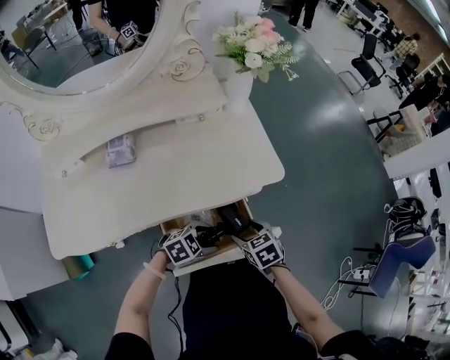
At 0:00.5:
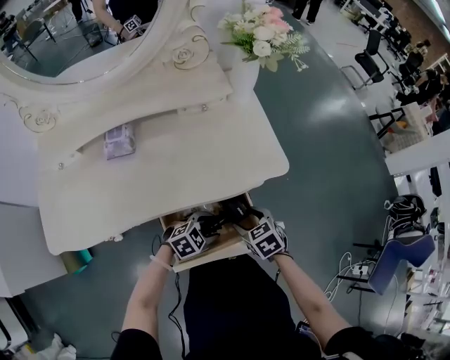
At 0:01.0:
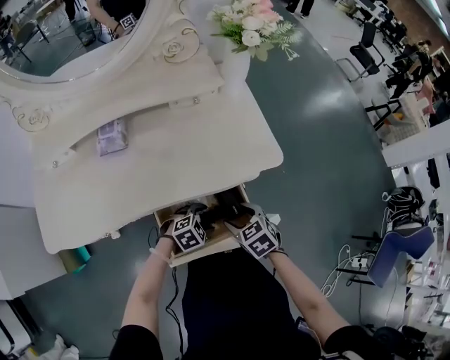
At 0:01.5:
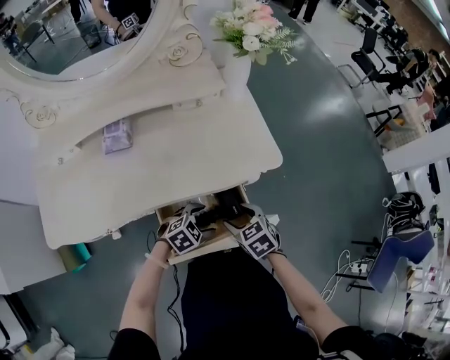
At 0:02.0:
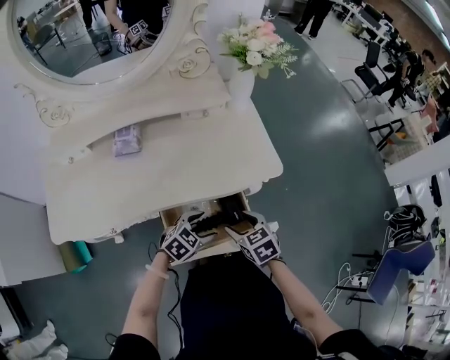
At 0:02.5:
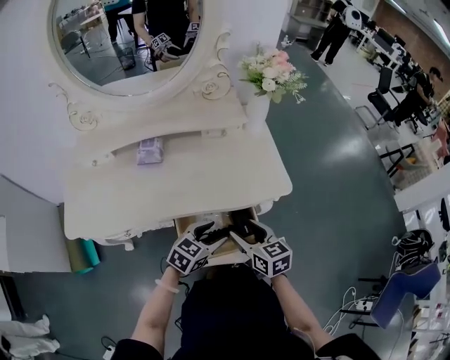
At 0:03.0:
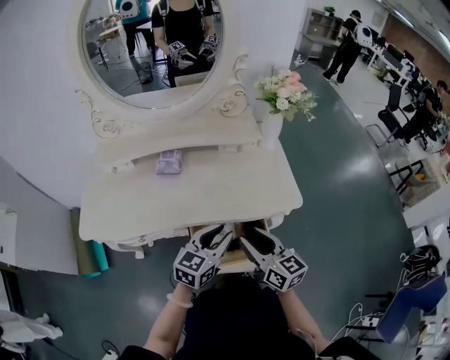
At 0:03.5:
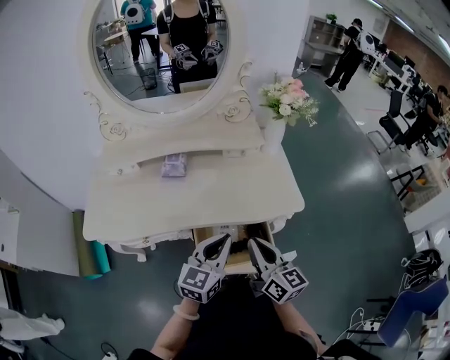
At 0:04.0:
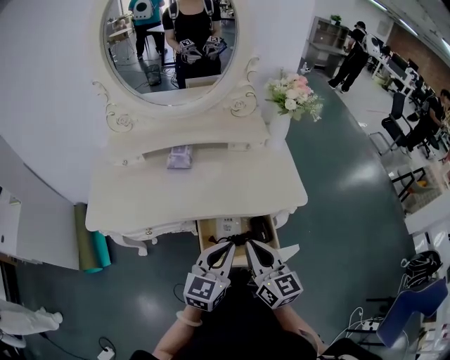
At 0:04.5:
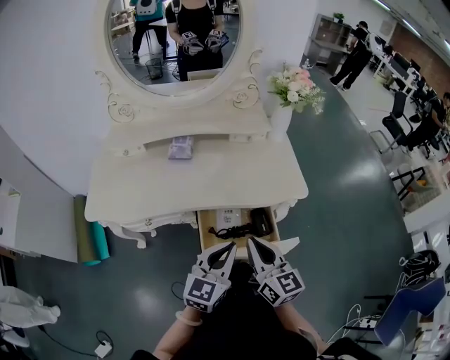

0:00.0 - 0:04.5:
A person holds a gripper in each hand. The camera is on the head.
0:00.0 - 0:02.0: The left gripper moves some 5 cm downward and comes back, and turns by some 20 degrees.
0:02.0 - 0:04.5: The right gripper moves upward and backward, about 20 cm, tilts its fingers some 40 degrees upward, and closes up. Meanwhile the left gripper is displaced upward by about 20 cm, tips its fingers upward by roughly 30 degrees, and closes up.

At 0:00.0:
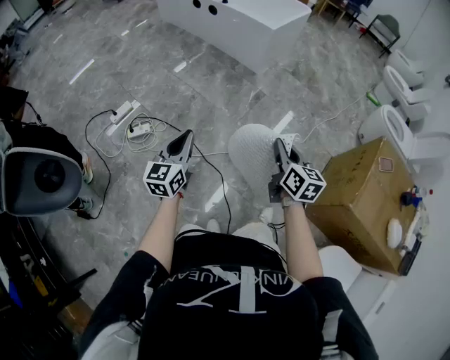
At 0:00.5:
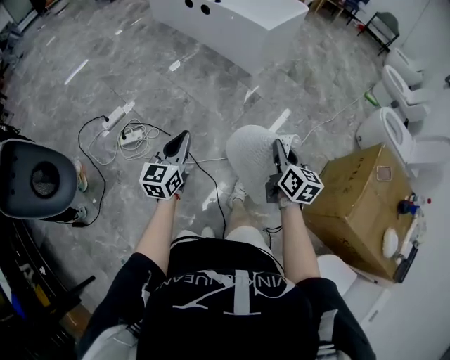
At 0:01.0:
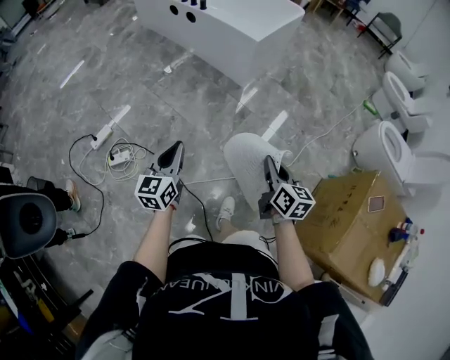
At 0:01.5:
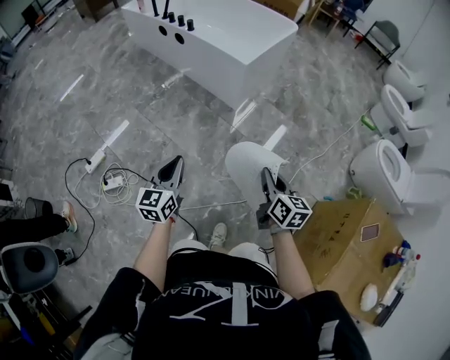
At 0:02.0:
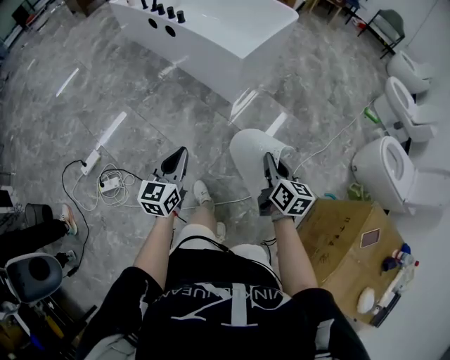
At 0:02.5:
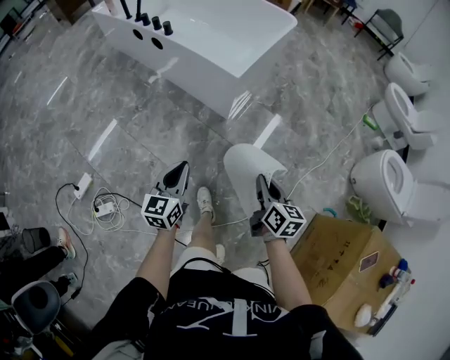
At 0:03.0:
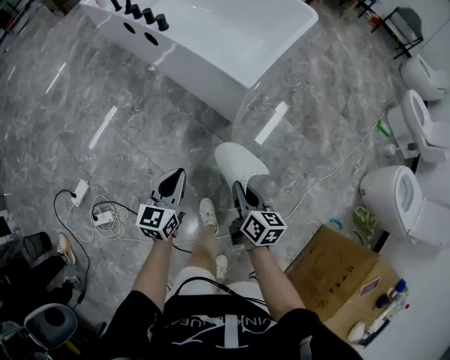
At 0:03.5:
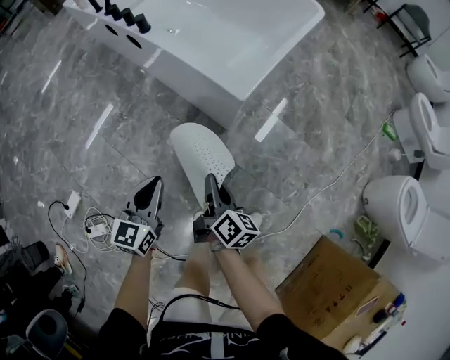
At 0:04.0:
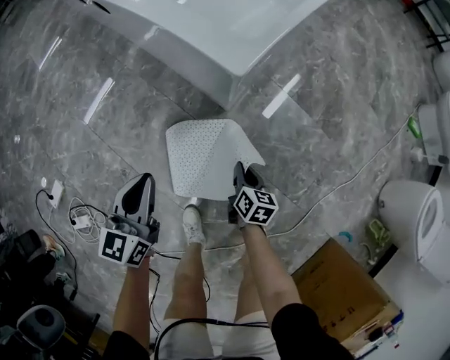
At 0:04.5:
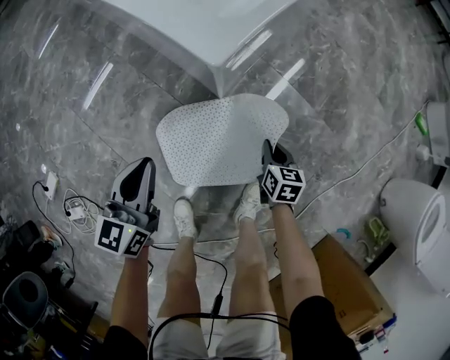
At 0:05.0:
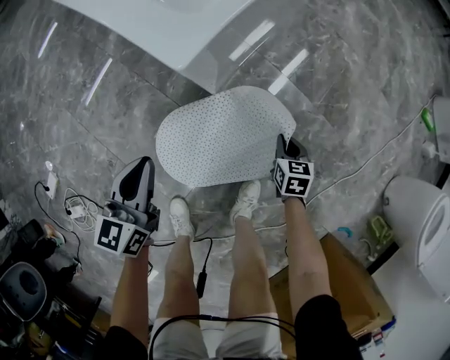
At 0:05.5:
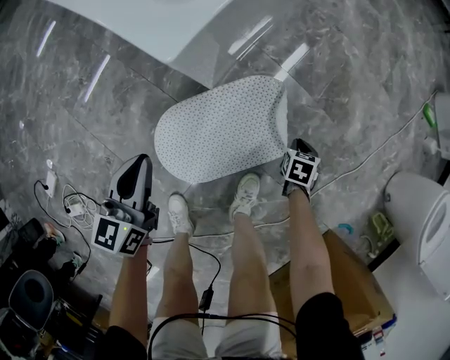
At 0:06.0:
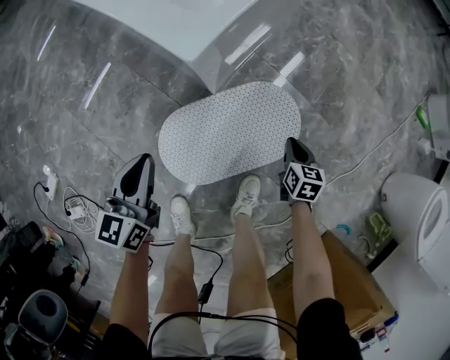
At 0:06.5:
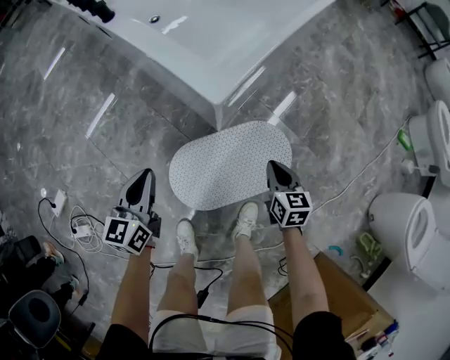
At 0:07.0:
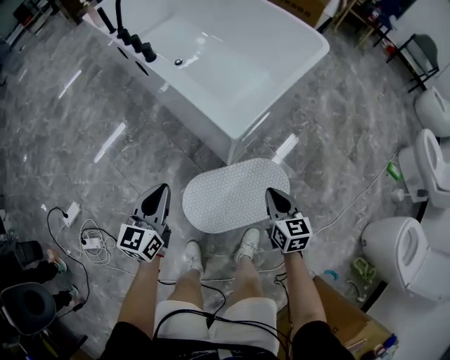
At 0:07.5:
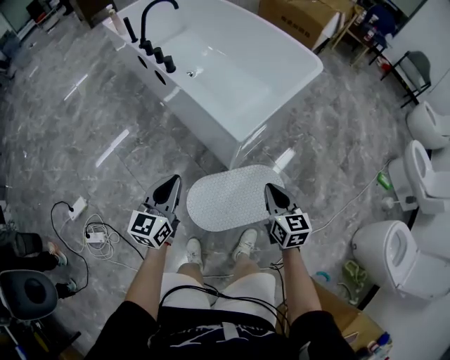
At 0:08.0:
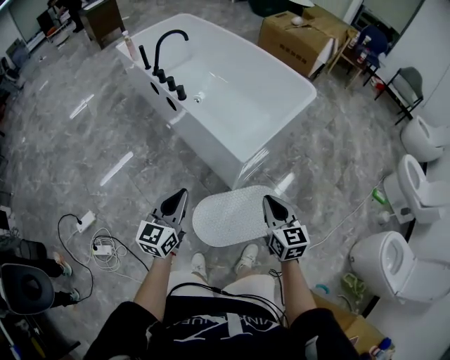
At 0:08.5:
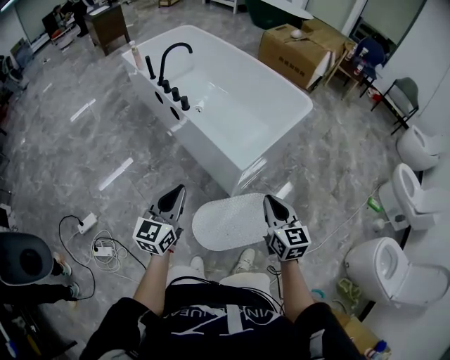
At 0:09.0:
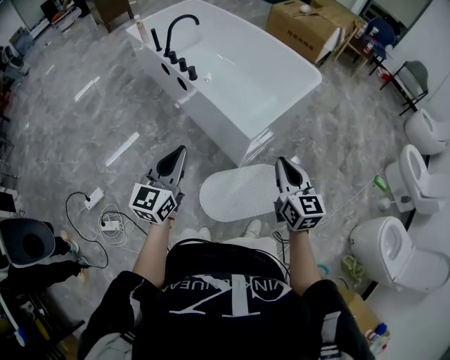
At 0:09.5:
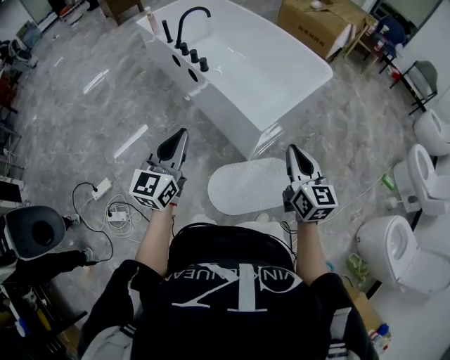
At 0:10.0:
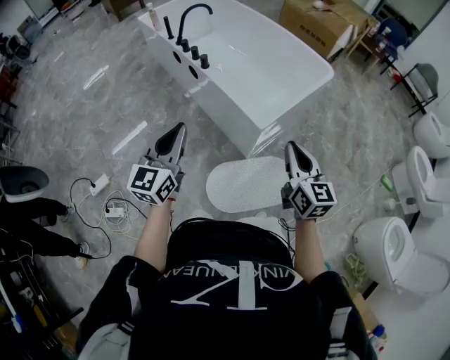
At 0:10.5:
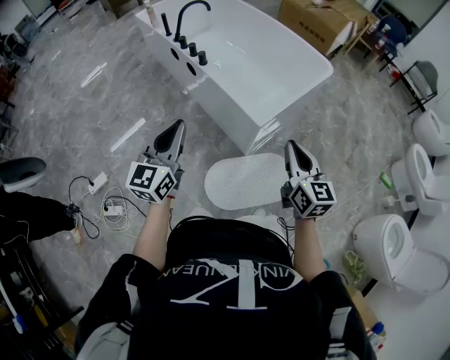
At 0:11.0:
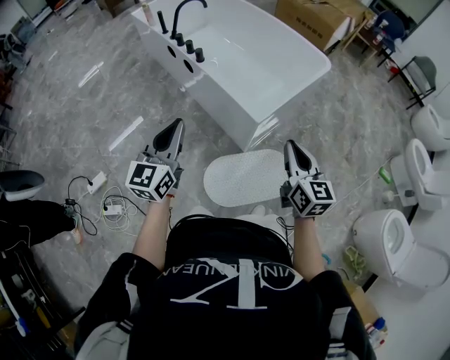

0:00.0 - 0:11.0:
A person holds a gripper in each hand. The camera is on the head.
0:00.0 - 0:02.0: Both grippers are carried forward, some 50 cm.
0:02.0 - 0:03.5: The right gripper travels forward, downward and to the left by roughly 40 cm, and turns by roughly 30 degrees. The left gripper is displaced forward and downward by approximately 40 cm.
0:03.5 - 0:05.5: The right gripper travels downward and to the right by about 60 cm, and tilts its fingers roughly 50 degrees downward. Meanwhile the left gripper travels downward, to the right and forward by about 30 cm.
0:05.5 - 0:07.5: The left gripper shifts some 30 cm upward. Meanwhile the right gripper moves upward and to the left, approximately 60 cm, and tips its fingers upward by about 40 degrees.
0:07.5 - 0:09.0: The grippers both shift upward by some 20 cm.
0:09.0 - 0:11.0: The grippers stay close to where they were, moving slightly.

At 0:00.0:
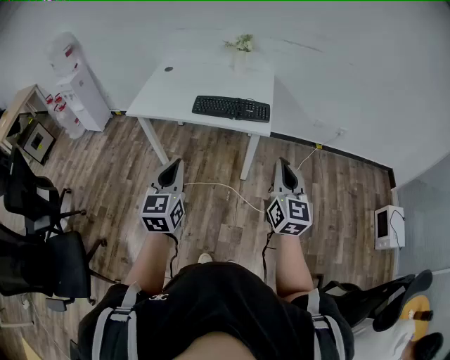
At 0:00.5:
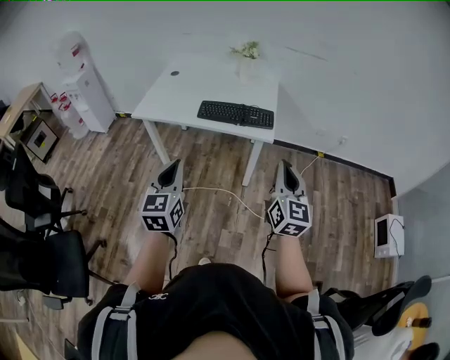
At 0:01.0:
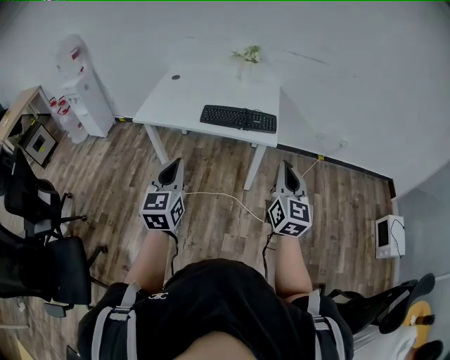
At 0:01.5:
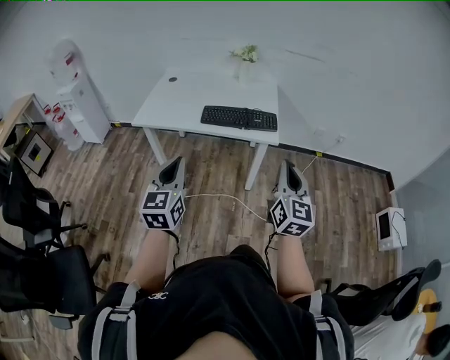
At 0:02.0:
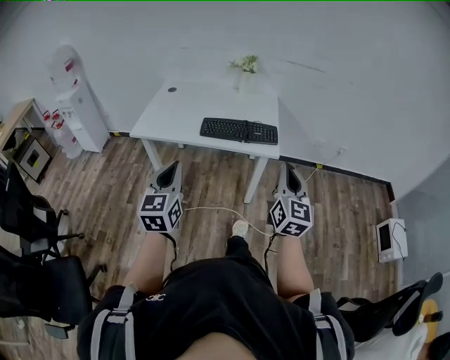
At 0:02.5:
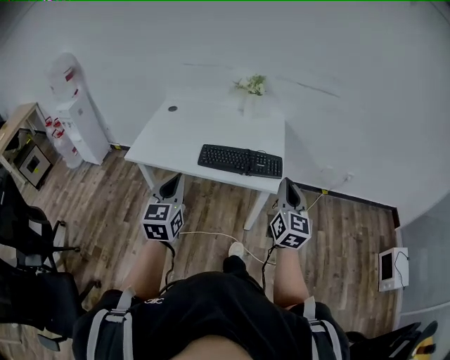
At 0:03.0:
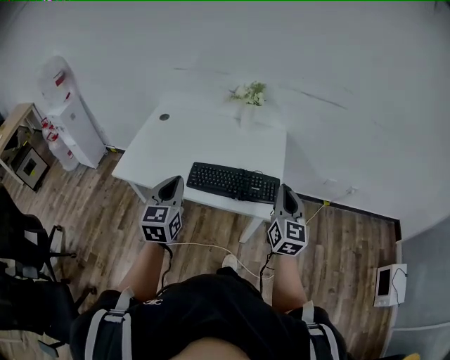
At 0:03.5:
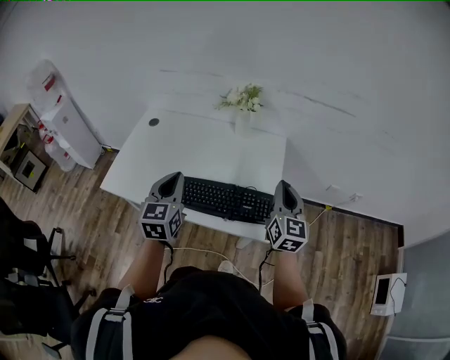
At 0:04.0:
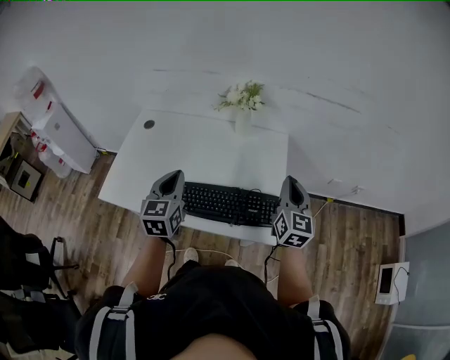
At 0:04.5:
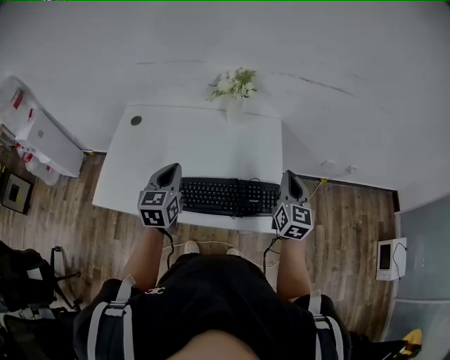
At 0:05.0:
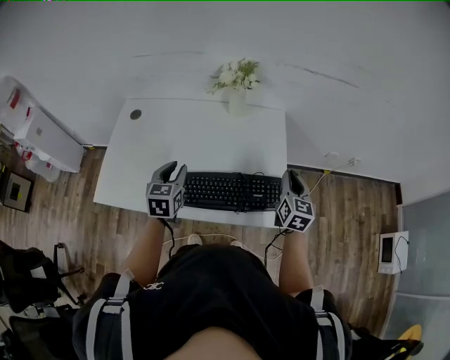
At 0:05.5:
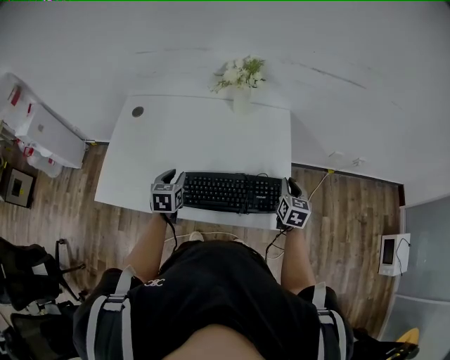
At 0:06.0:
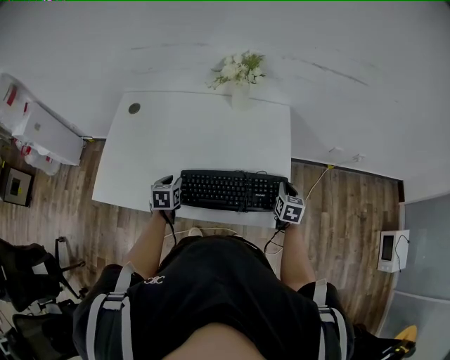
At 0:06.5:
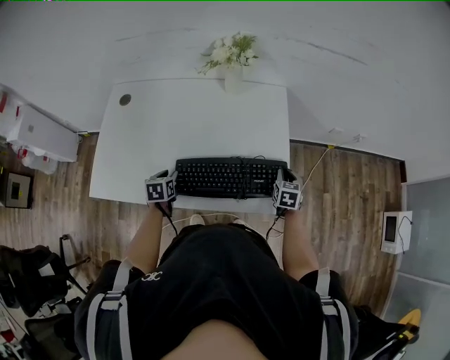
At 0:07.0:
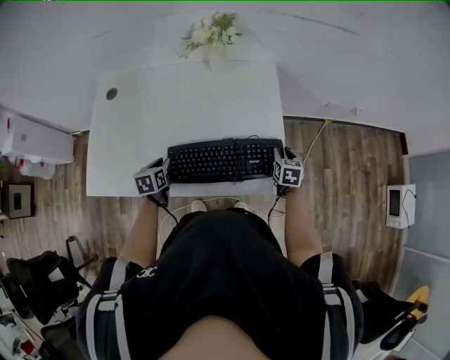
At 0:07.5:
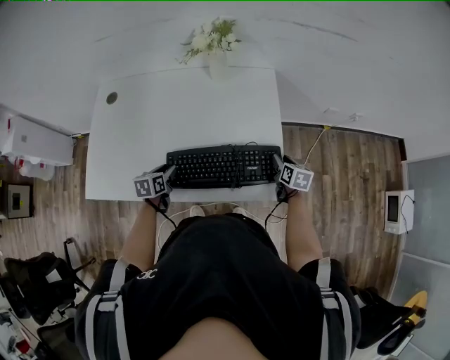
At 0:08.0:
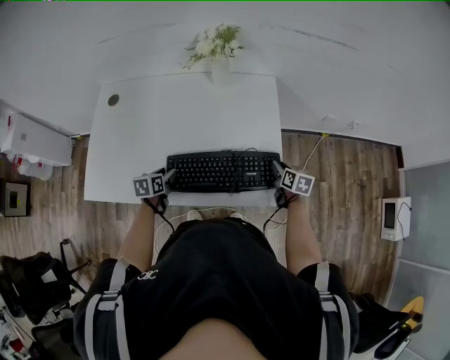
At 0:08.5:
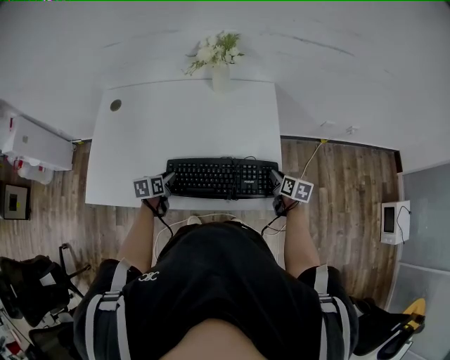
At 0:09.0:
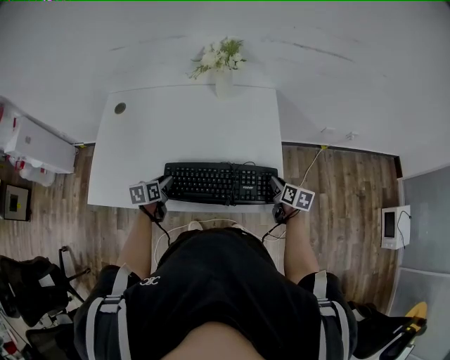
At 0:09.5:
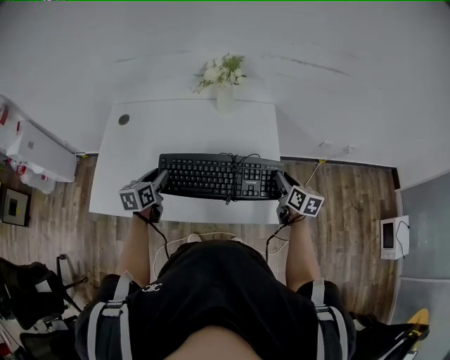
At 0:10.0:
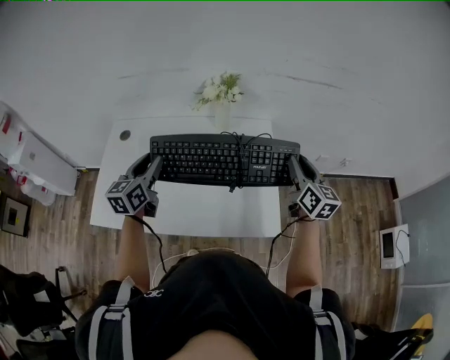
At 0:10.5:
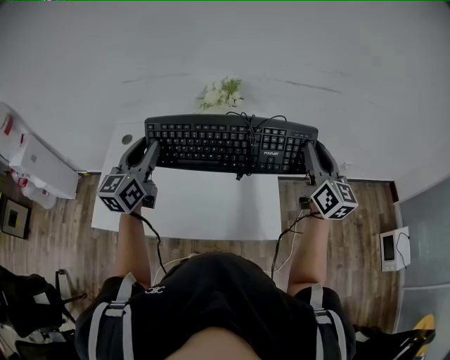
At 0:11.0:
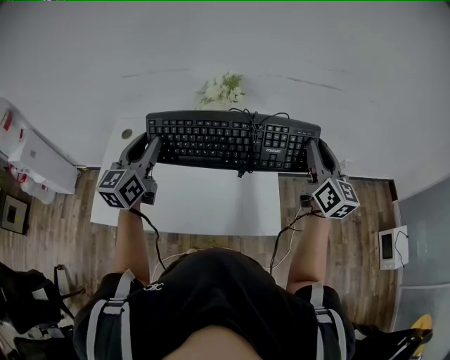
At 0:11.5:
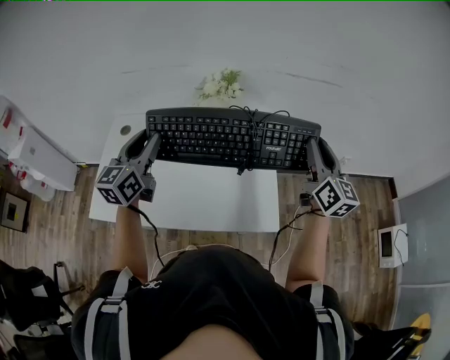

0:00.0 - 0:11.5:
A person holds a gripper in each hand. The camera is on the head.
0:00.0 - 0:02.0: The left gripper shifts approximately 10 cm to the left and forward; the right gripper moves forward and to the left, roughly 10 cm.
0:02.0 - 0:04.0: The pair of grippers is taken forward, roughly 50 cm.
0:04.0 - 0:06.0: The two grippers go approximately 25 cm downward. The left gripper points its fingers some 30 degrees further downward, and opens up. Meanwhile the right gripper tilts its fingers roughly 40 degrees downward.
0:06.0 - 0:07.5: The right gripper changes place by about 5 cm, and opens up.
0:07.5 - 0:09.5: Both grippers travel together upward, approximately 15 cm.
0:09.5 - 0:11.5: Both grippers travel together upward, approximately 25 cm. The right gripper points its fingers some 30 degrees further upward. Meanwhile the left gripper tips its fingers upward by roughly 30 degrees.
